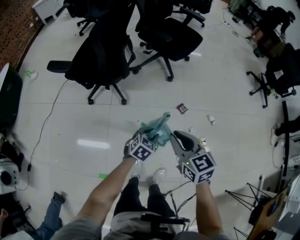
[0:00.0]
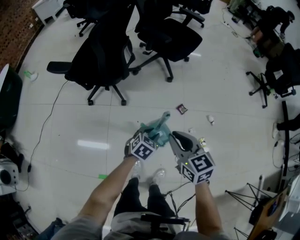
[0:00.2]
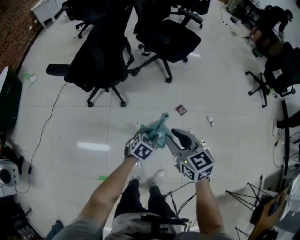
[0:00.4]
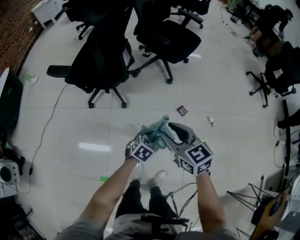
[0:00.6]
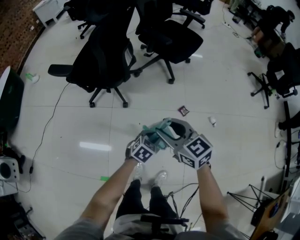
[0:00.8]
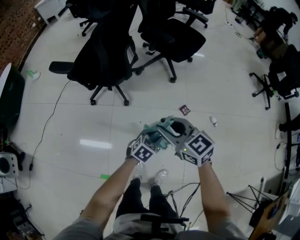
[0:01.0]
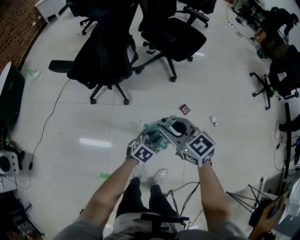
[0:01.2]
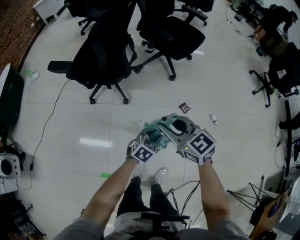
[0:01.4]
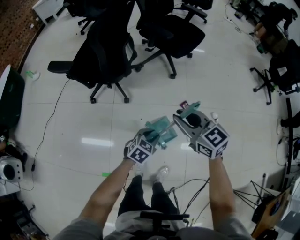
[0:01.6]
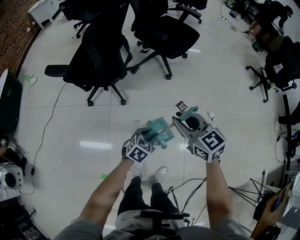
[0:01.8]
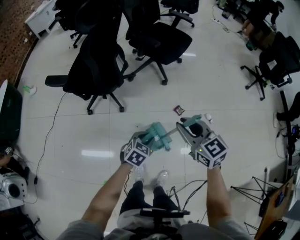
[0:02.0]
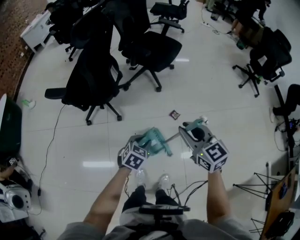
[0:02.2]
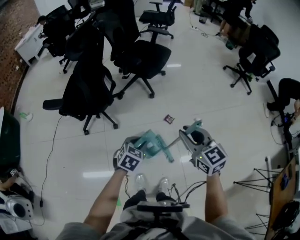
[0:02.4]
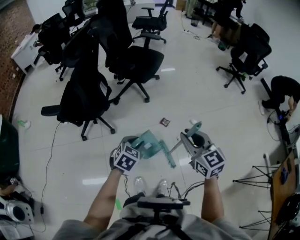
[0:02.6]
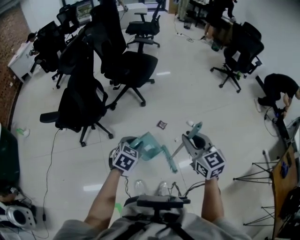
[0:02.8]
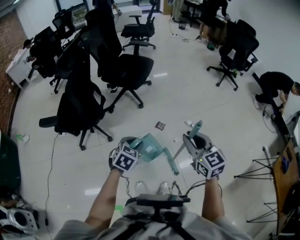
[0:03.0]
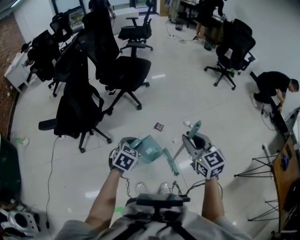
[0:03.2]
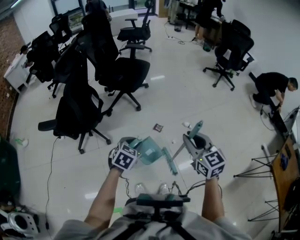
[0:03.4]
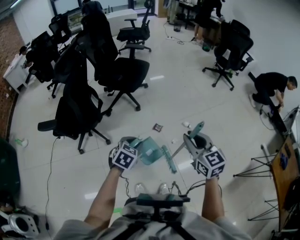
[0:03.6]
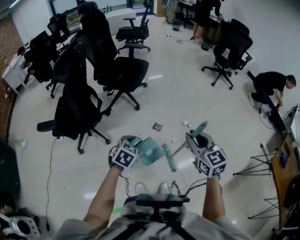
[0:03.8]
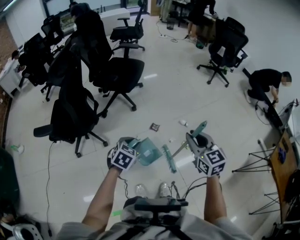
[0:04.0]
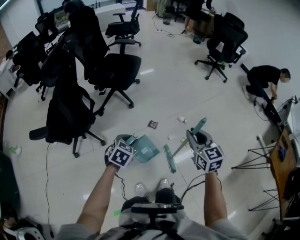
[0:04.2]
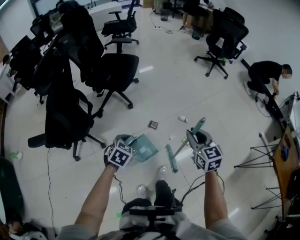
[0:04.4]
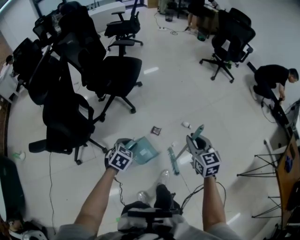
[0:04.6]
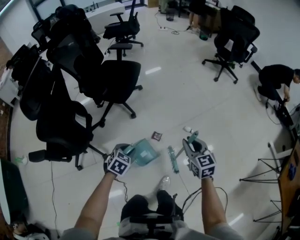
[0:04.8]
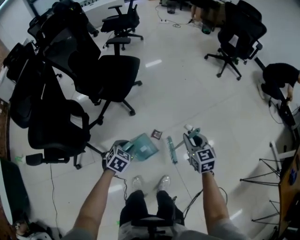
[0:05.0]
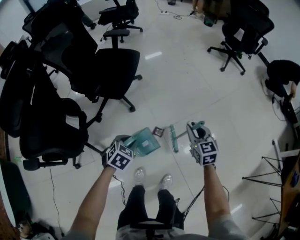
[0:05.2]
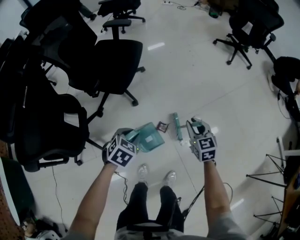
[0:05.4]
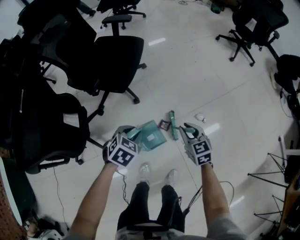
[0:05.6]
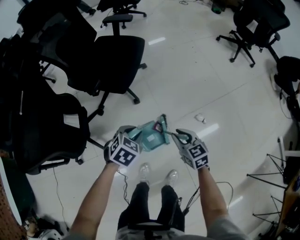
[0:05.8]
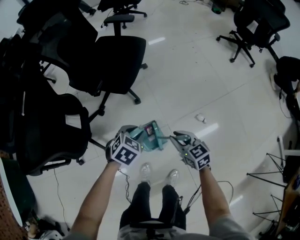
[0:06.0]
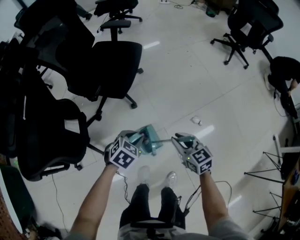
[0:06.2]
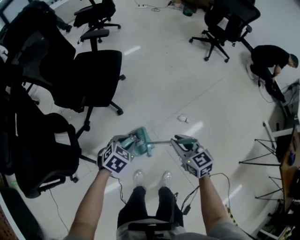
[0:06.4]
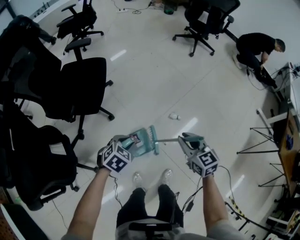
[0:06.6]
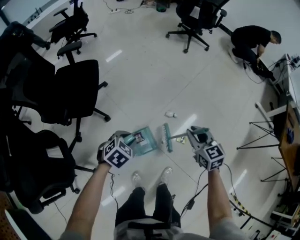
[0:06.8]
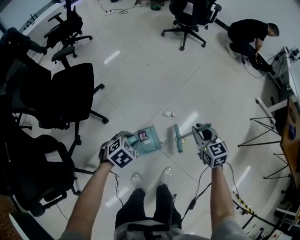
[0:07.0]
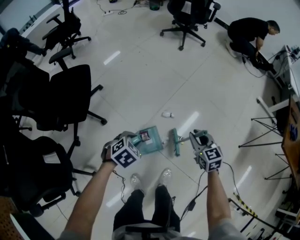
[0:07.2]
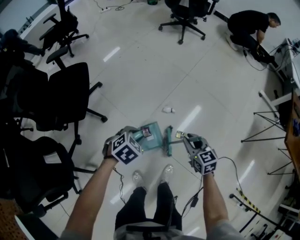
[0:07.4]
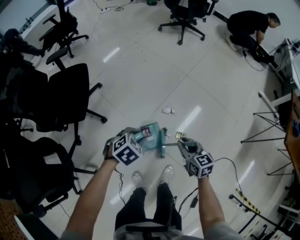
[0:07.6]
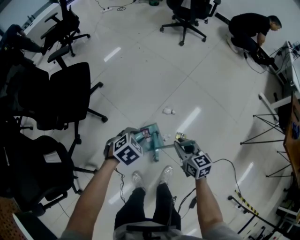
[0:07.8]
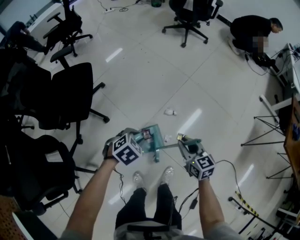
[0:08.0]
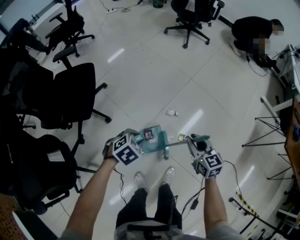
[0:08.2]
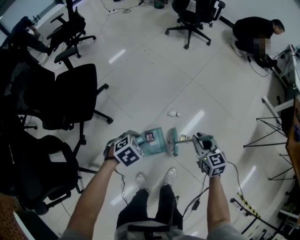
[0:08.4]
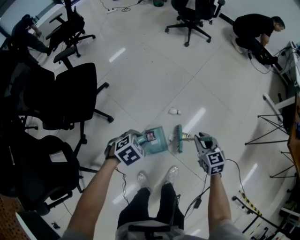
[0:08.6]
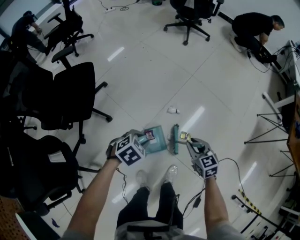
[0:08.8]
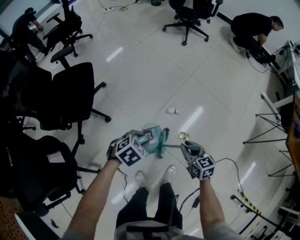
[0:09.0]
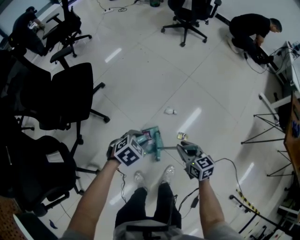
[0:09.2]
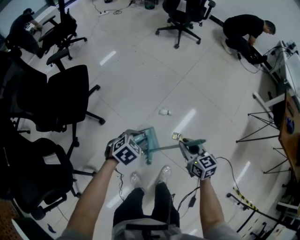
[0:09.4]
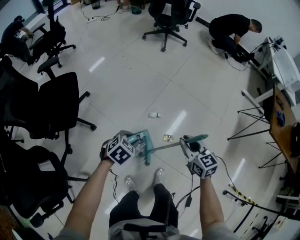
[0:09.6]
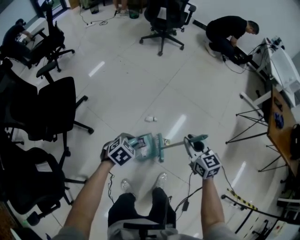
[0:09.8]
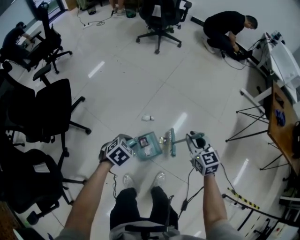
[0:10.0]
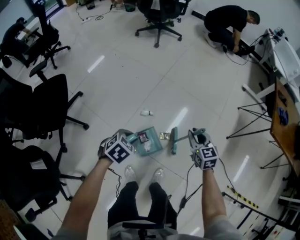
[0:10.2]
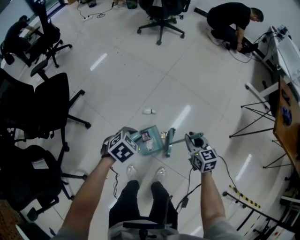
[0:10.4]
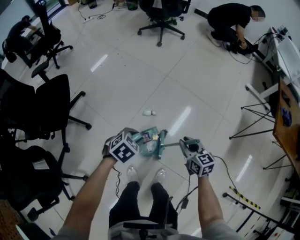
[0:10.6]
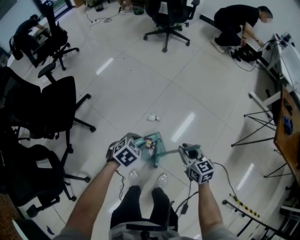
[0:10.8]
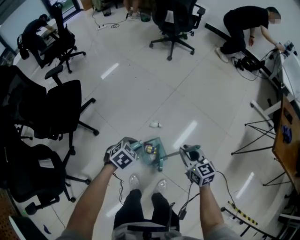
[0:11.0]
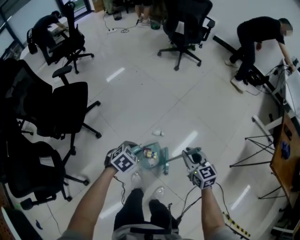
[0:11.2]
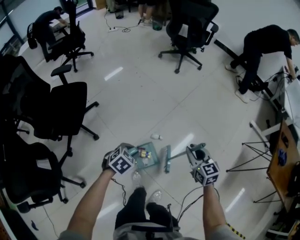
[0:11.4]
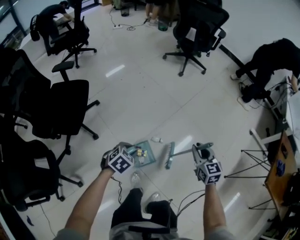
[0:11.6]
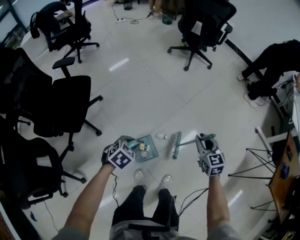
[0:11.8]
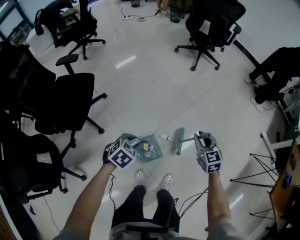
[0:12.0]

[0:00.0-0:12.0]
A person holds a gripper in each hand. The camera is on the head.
0.0 to 1.6 s: The right gripper goes some 5 cm forward.
1.6 to 3.0 s: The right gripper moves to the right, backward and upward, about 25 cm, and changes its angle by about 40 degrees, while the left gripper is displaced upward by approximately 15 cm.
3.0 to 4.4 s: Both grippers travel together forward and downward, some 10 cm.
4.4 to 6.0 s: The left gripper is displaced forward by approximately 30 cm; the right gripper shifts roughly 35 cm forward, downward and to the left, and changes its angle by roughly 30 degrees.
6.0 to 7.6 s: The left gripper ends up about 25 cm from where it was, and swivels roughly 40 degrees. Meanwhile the right gripper travels upward and back again, roughly 10 cm each way, and swivels some 40 degrees.
9.0 to 10.4 s: Both grippers travel together to the right, roughly 15 cm.
10.4 to 12.0 s: The grippers both shift forward and to the left by roughly 20 cm. The right gripper swivels some 20 degrees; the left gripper rotates about 20 degrees.

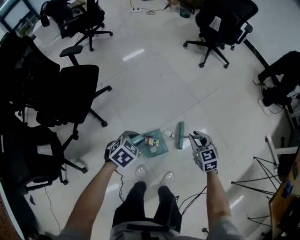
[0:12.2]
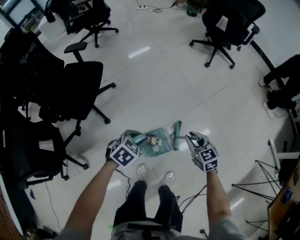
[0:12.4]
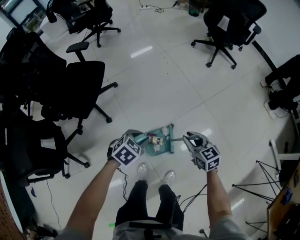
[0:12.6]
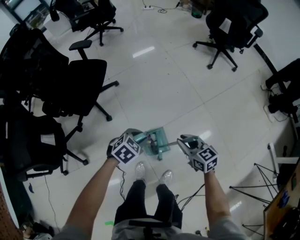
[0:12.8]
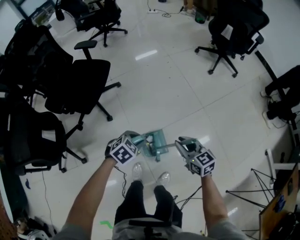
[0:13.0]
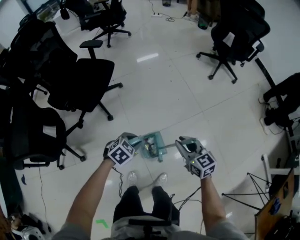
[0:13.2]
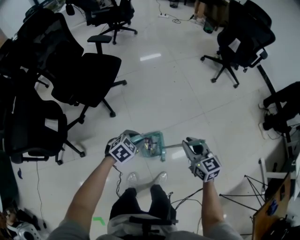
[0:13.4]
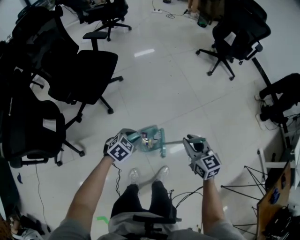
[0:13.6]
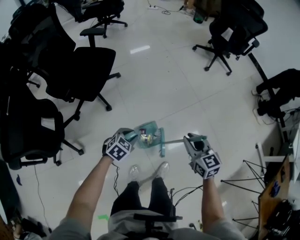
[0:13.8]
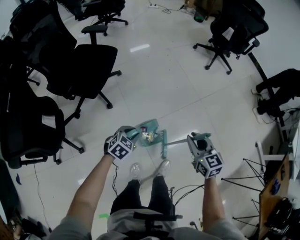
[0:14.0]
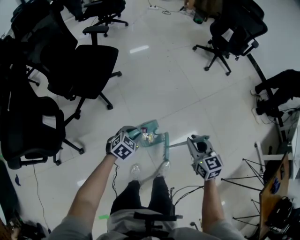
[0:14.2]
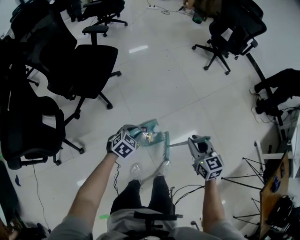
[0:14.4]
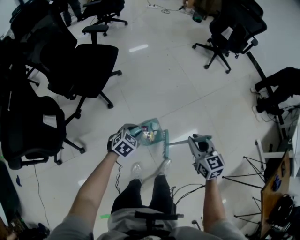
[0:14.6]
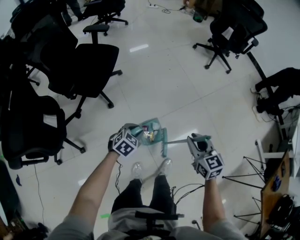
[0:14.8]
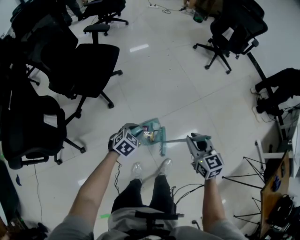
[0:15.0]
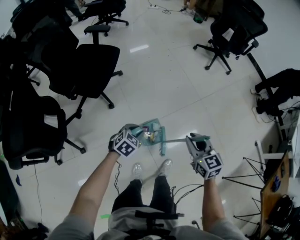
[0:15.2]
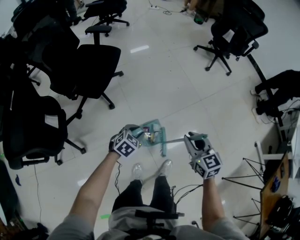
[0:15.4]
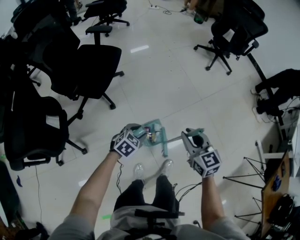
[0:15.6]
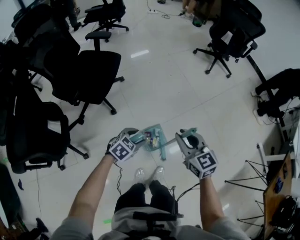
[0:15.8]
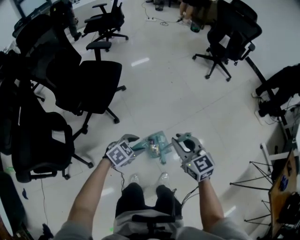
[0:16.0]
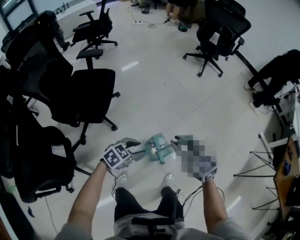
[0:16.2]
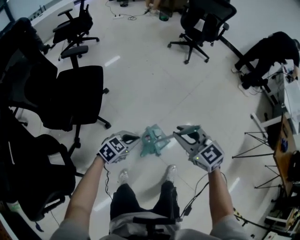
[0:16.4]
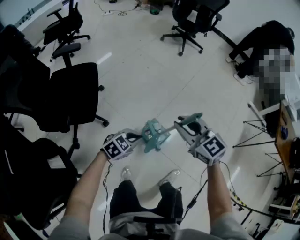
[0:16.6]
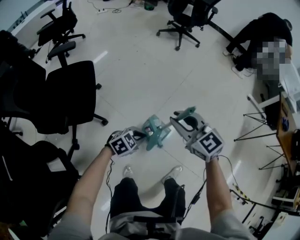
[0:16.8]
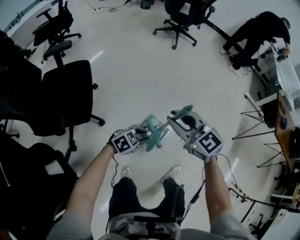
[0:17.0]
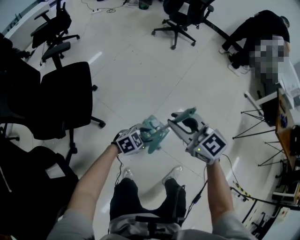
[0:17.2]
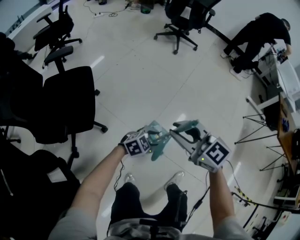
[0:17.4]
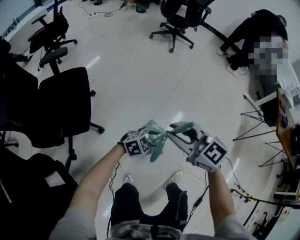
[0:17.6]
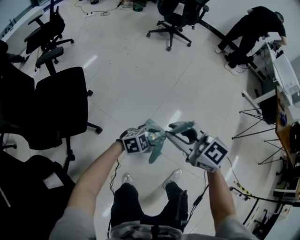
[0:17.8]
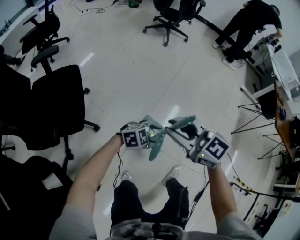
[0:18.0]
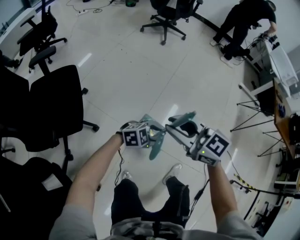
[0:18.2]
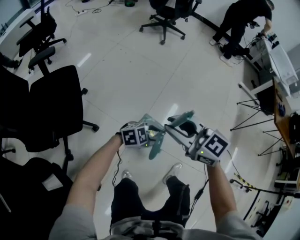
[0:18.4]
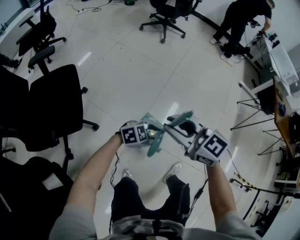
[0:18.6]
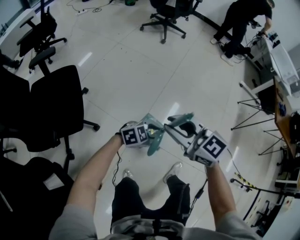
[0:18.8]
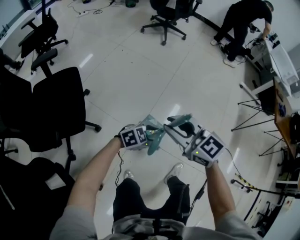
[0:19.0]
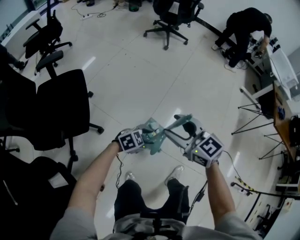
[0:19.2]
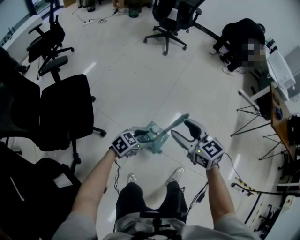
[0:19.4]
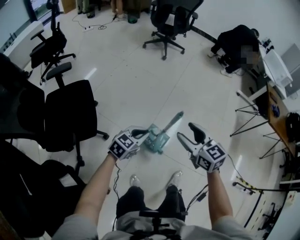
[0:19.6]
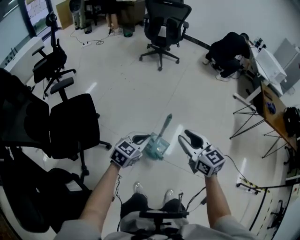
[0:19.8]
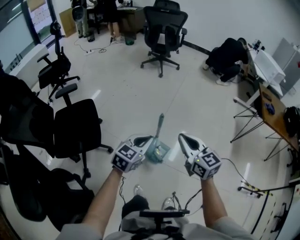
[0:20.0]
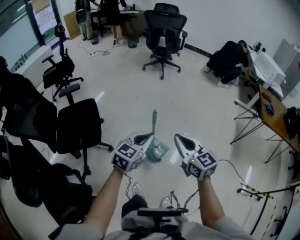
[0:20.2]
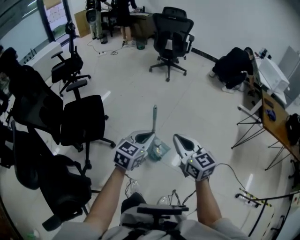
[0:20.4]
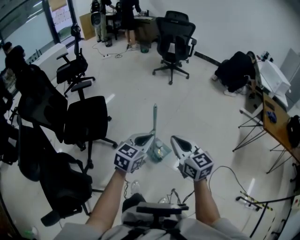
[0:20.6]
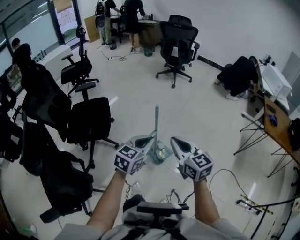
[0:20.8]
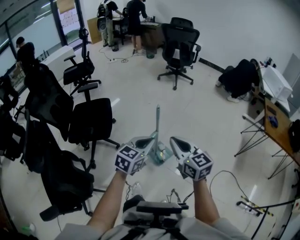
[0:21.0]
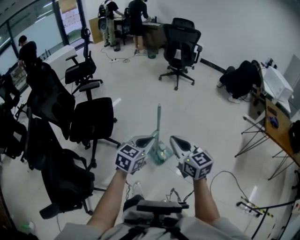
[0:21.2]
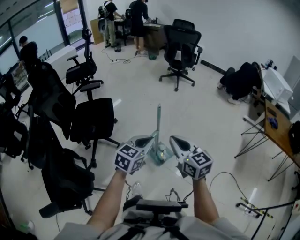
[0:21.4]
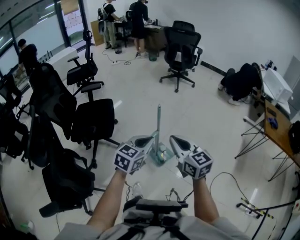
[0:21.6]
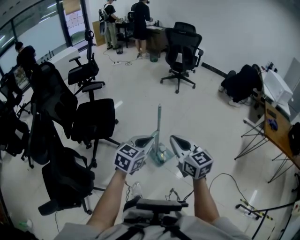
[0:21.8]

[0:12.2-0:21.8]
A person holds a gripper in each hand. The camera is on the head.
12.2 to 13.8 s: The right gripper travels upward, backward and to the left by approximately 20 cm. Meanwhile the left gripper is displaced to the left and backward by some 15 cm.
13.8 to 15.4 s: The right gripper goes some 5 cm to the left.
15.4 to 17.0 s: The left gripper rotates some 50 degrees, and closes, then reopens. The right gripper ends up roughly 20 cm from where it was.
17.0 to 18.6 s: The left gripper moves roughly 5 cm, and changes its angle by about 30 degrees.
18.6 to 20.2 s: The left gripper shifts approximately 30 cm upward, rotates roughly 50 degrees, and closes up, while the right gripper shifts by approximately 20 cm, swivels some 30 degrees, and opens, then closes once more.
20.2 to 21.8 s: The grippers both shift backward by about 10 cm.

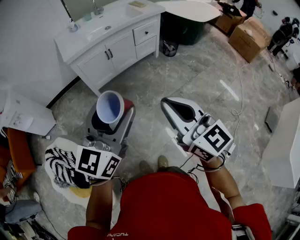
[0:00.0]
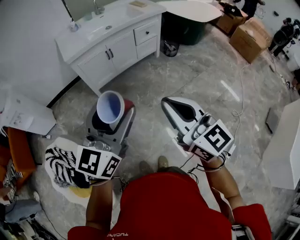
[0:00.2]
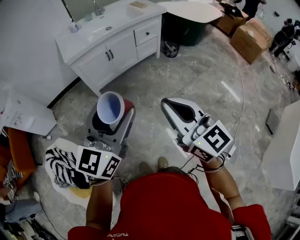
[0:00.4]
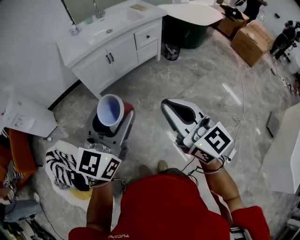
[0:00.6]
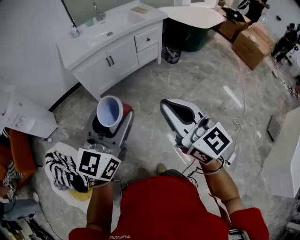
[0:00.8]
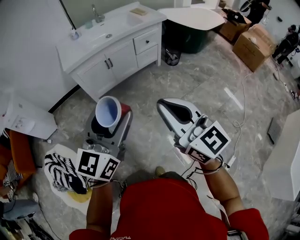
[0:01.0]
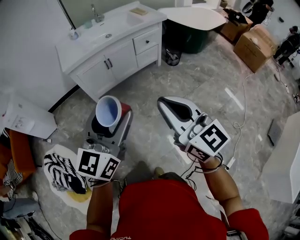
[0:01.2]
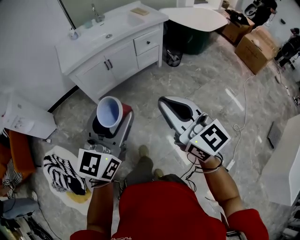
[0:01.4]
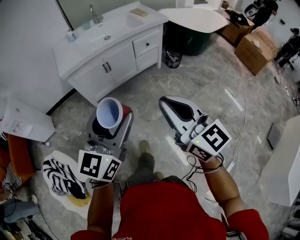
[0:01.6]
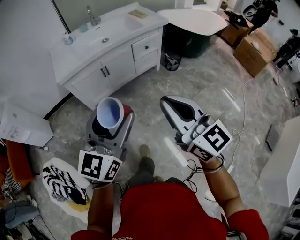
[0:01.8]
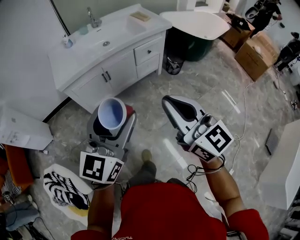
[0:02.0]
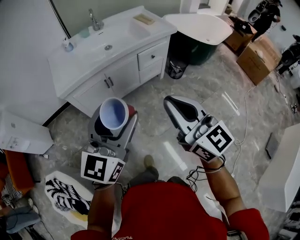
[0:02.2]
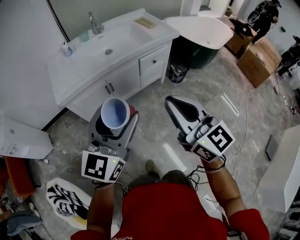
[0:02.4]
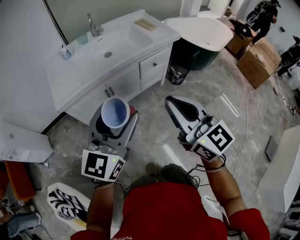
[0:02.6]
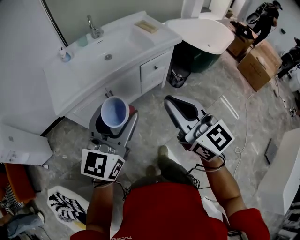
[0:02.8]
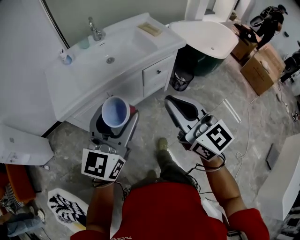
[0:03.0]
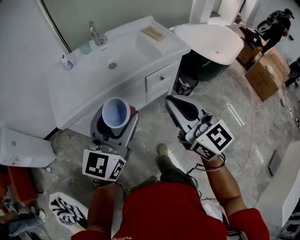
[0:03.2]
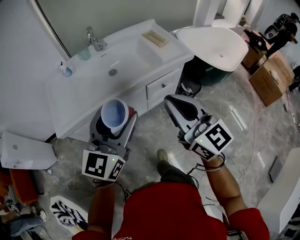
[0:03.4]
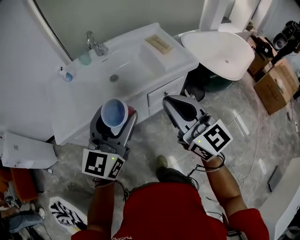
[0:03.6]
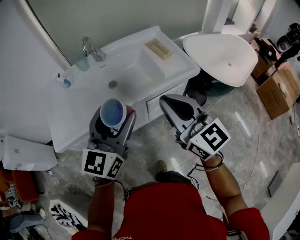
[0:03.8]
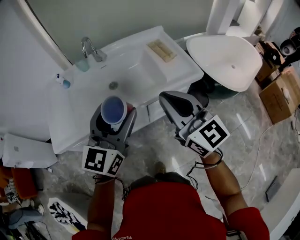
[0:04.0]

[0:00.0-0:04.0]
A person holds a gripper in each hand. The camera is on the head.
0.0 to 1.4 s: Both grippers travel together forward and to the right, about 10 cm.
1.4 to 2.6 s: Both grippers travel together forward, about 30 cm.
2.6 to 4.0 s: The two grippers go approximately 35 cm forward.
